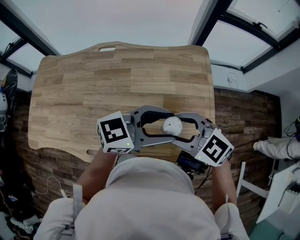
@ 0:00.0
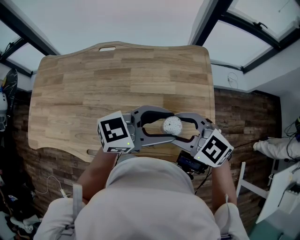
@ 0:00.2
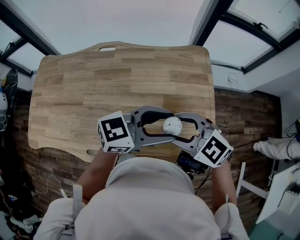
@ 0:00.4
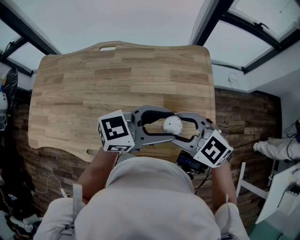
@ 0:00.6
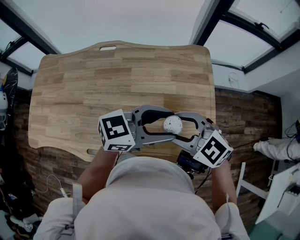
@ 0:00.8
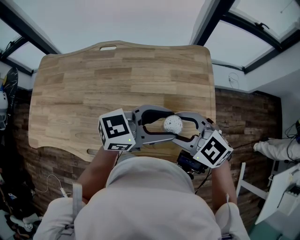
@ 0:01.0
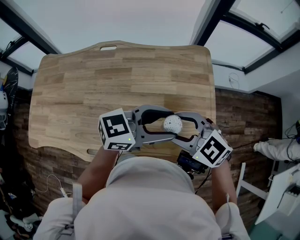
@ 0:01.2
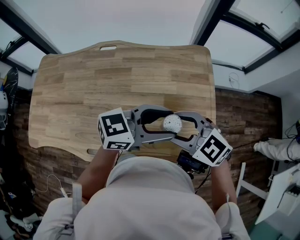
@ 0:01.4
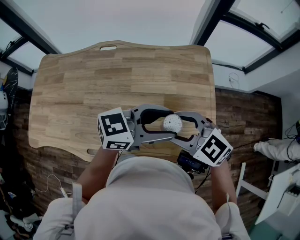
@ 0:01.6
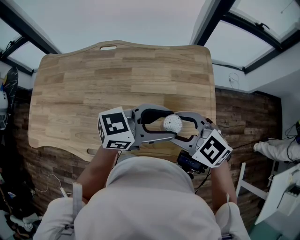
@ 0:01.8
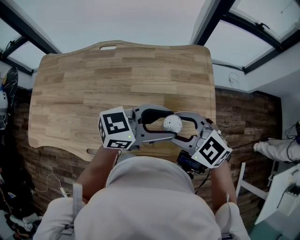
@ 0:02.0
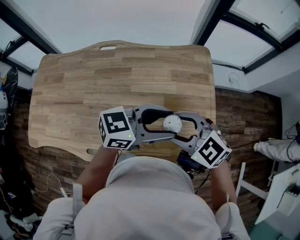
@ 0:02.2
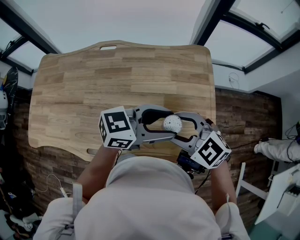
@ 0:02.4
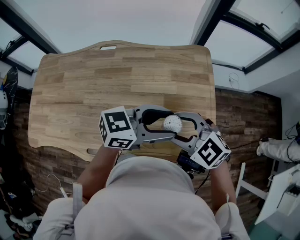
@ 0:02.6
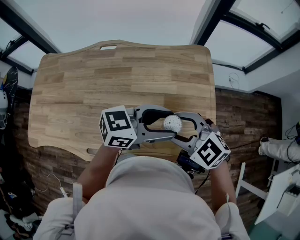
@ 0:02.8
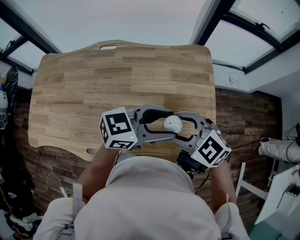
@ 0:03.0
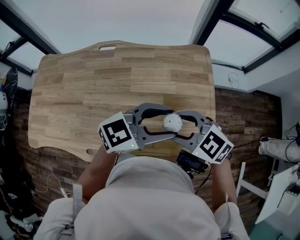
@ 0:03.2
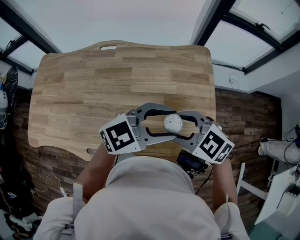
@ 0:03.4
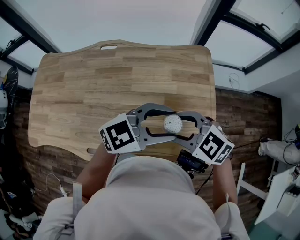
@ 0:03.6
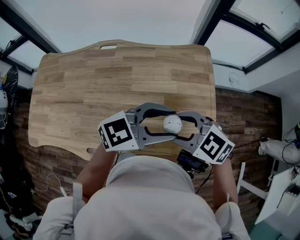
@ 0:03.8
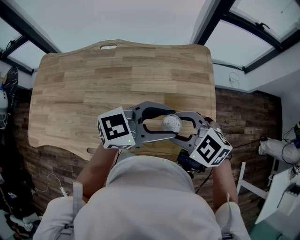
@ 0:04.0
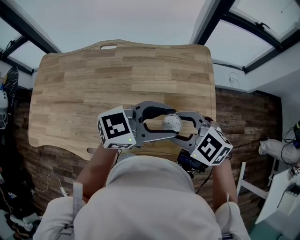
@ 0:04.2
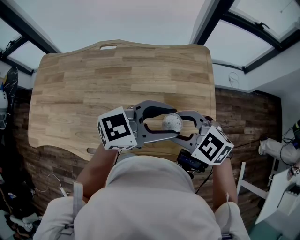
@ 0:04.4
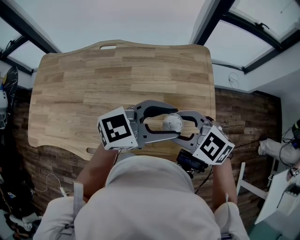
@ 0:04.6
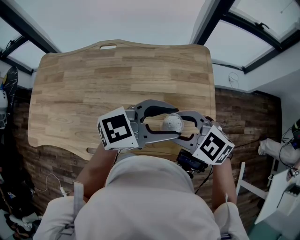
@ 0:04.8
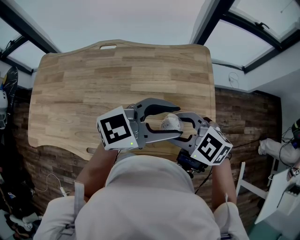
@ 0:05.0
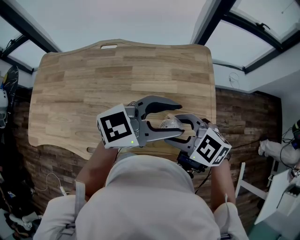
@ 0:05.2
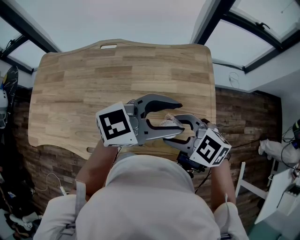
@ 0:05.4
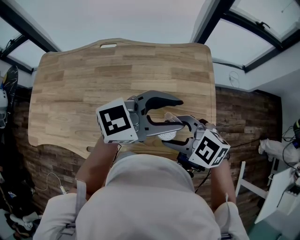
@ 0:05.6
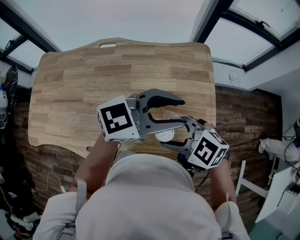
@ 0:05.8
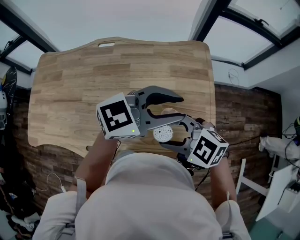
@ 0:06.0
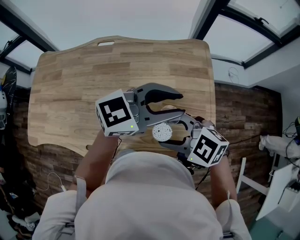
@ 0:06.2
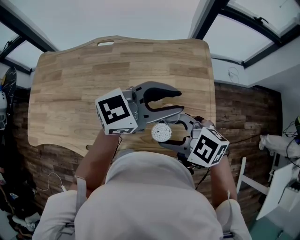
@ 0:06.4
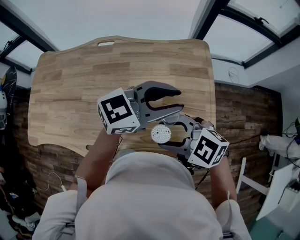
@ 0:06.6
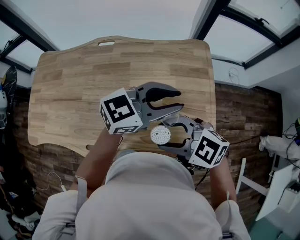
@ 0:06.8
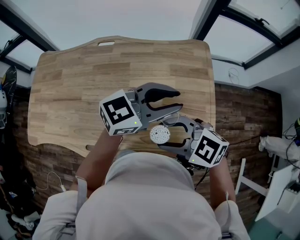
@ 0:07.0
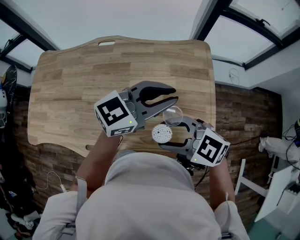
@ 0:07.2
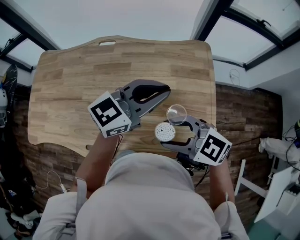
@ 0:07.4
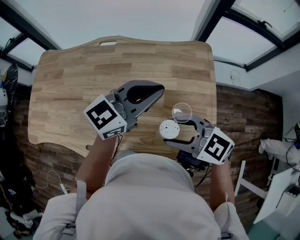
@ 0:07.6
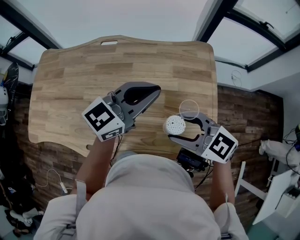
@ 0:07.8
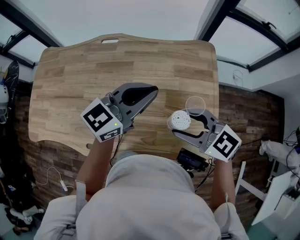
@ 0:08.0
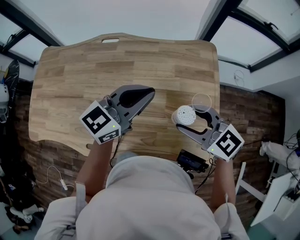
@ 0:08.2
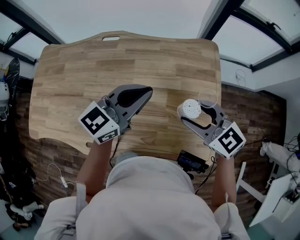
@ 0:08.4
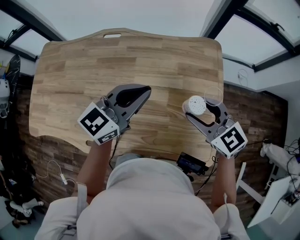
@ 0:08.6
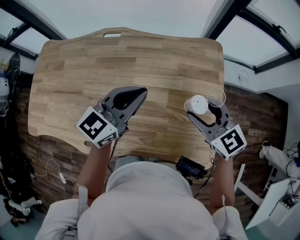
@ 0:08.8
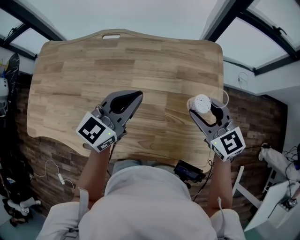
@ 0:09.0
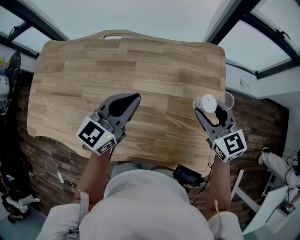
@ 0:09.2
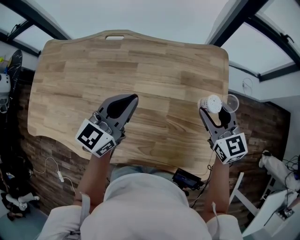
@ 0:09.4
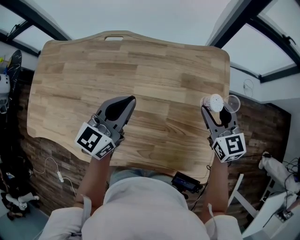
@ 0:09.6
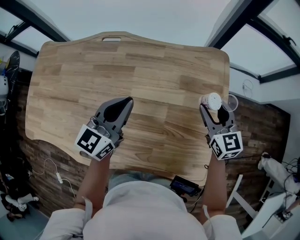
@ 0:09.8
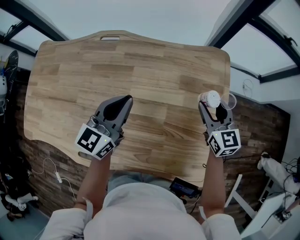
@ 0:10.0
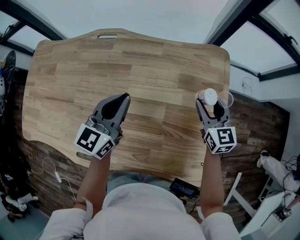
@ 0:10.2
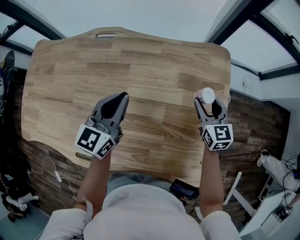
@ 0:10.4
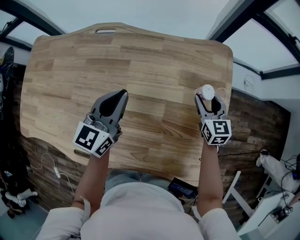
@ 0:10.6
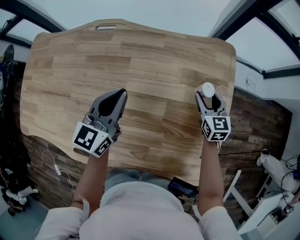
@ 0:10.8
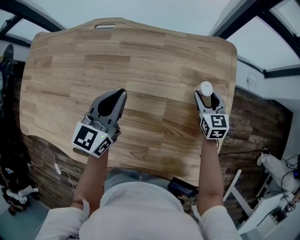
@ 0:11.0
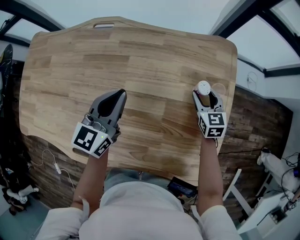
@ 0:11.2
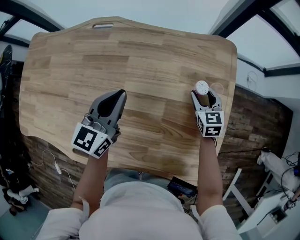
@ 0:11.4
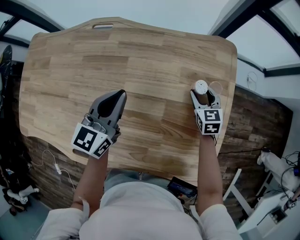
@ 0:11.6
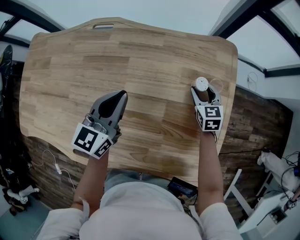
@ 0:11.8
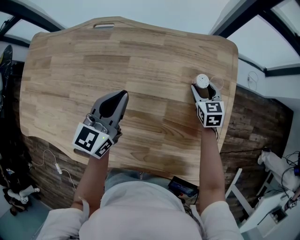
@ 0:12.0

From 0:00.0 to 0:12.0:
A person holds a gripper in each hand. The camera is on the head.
From 0:00.0 to 0:03.0: The grippers move only a little.
From 0:04.4 to 0:06.0: The left gripper closes its fingers.
From 0:06.0 to 0:07.6: The left gripper moves approximately 10 cm, changes its angle by about 20 degrees, and closes.
From 0:07.6 to 0:09.0: The left gripper heads downward, covering approximately 5 cm; the right gripper changes place by roughly 15 cm, and changes its angle by roughly 30 degrees.
From 0:09.0 to 0:10.4: The left gripper goes some 10 cm downward and forward. Meanwhile the right gripper shifts approximately 20 cm downward, forward and to the right, and rotates about 20 degrees.
From 0:10.4 to 0:12.0: The right gripper goes some 10 cm downward and forward.

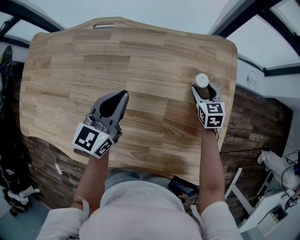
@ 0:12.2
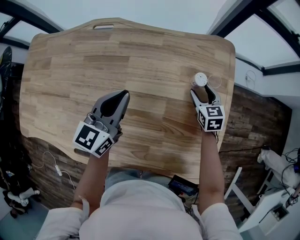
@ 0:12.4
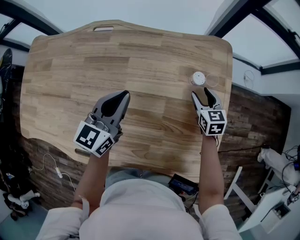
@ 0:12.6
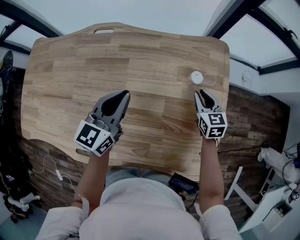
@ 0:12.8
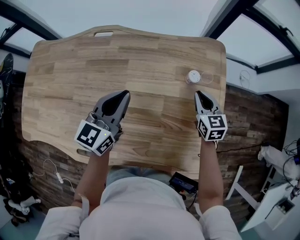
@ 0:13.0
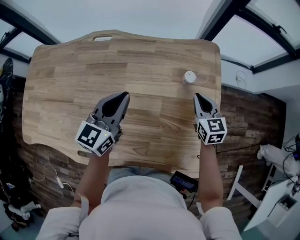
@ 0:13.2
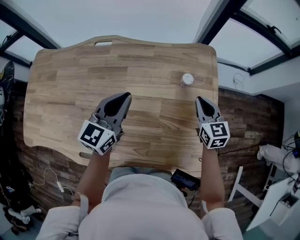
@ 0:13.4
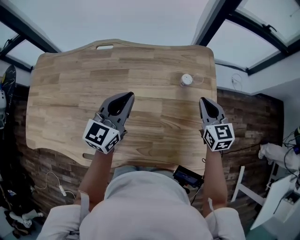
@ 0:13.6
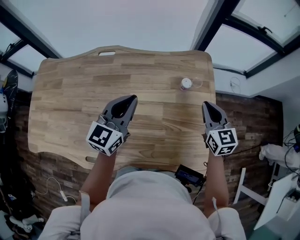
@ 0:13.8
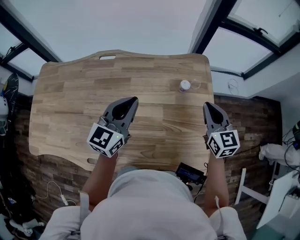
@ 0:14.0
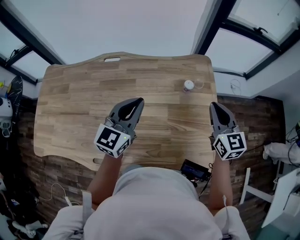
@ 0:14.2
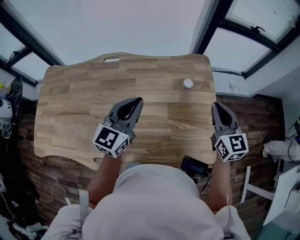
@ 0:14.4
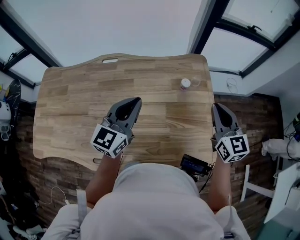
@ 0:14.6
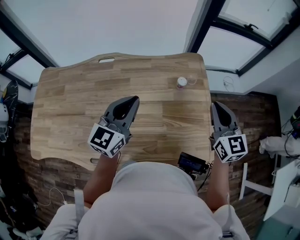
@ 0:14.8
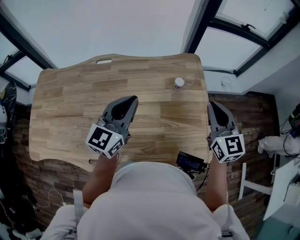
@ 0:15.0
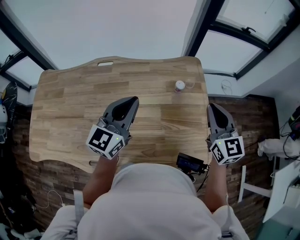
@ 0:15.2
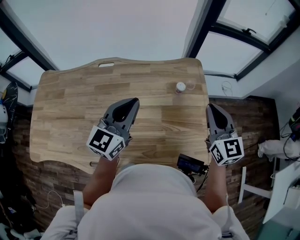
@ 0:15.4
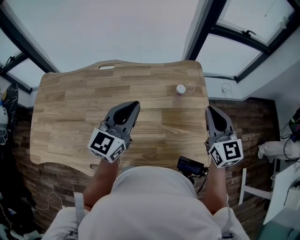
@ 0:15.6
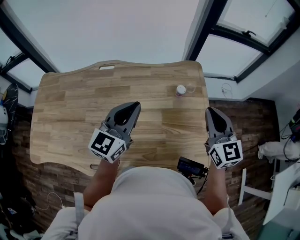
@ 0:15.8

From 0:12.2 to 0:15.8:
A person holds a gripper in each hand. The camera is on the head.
From 0:12.2 to 0:14.0: The left gripper goes some 15 cm upward and backward. Meanwhile the right gripper goes about 30 cm upward and backward, rotates some 20 degrees, and closes up.
From 0:14.0 to 0:15.8: The right gripper is displaced upward and backward by roughly 10 cm, while the left gripper ends up approximately 5 cm from where it was.

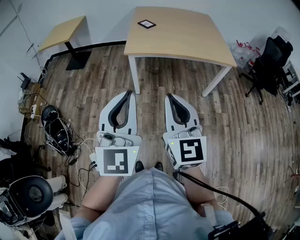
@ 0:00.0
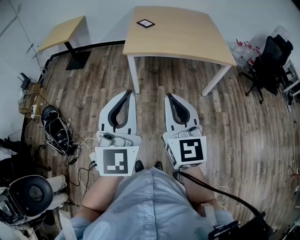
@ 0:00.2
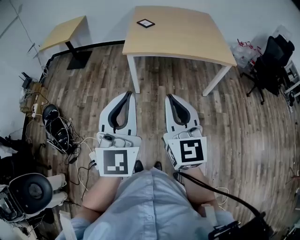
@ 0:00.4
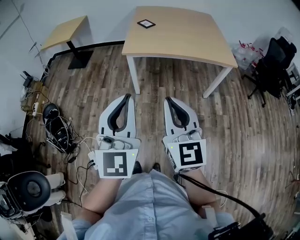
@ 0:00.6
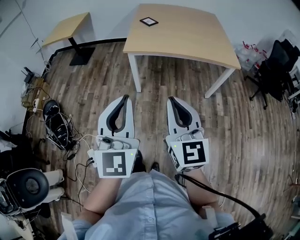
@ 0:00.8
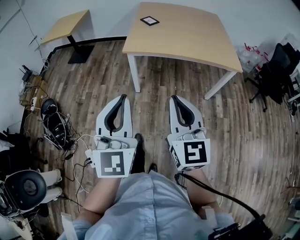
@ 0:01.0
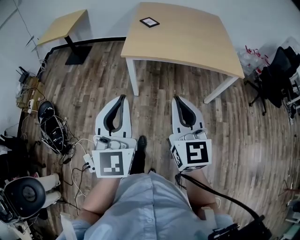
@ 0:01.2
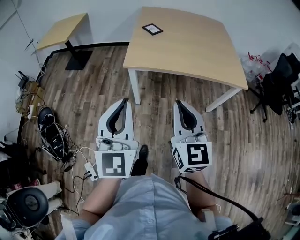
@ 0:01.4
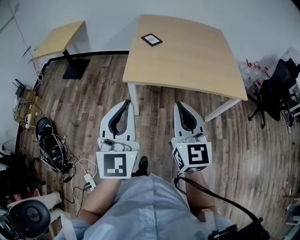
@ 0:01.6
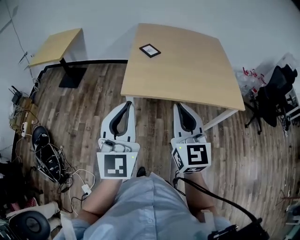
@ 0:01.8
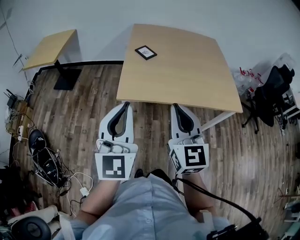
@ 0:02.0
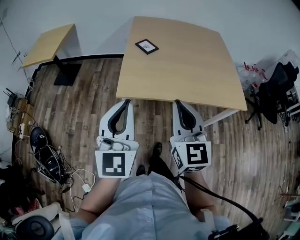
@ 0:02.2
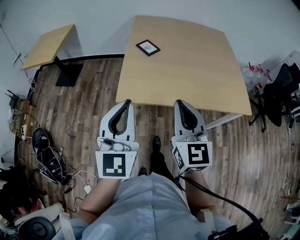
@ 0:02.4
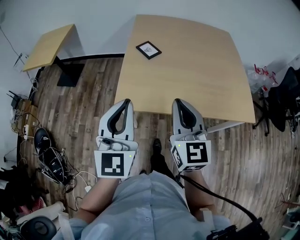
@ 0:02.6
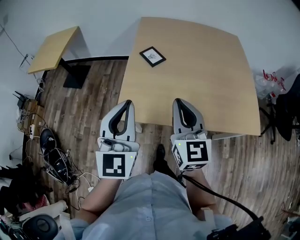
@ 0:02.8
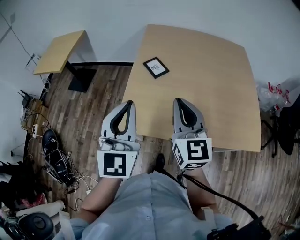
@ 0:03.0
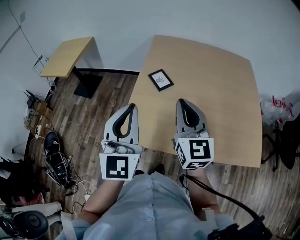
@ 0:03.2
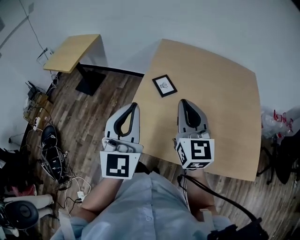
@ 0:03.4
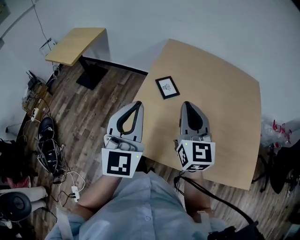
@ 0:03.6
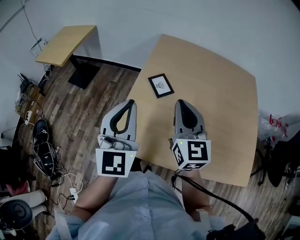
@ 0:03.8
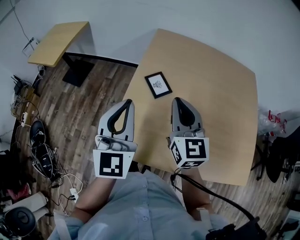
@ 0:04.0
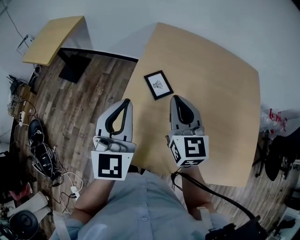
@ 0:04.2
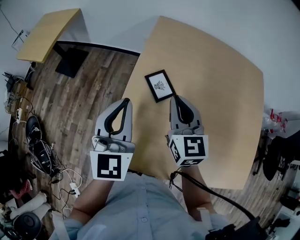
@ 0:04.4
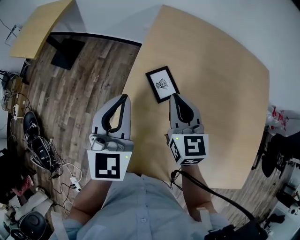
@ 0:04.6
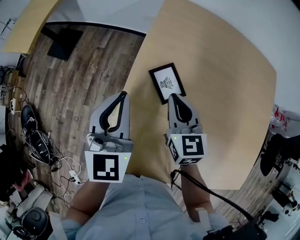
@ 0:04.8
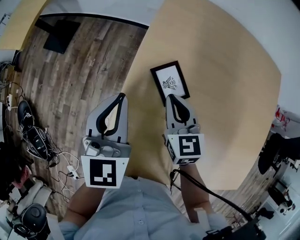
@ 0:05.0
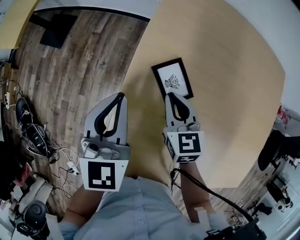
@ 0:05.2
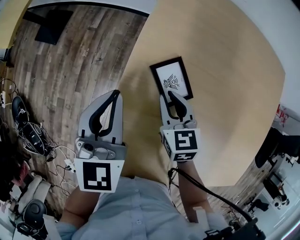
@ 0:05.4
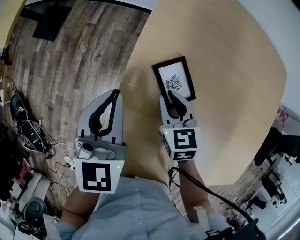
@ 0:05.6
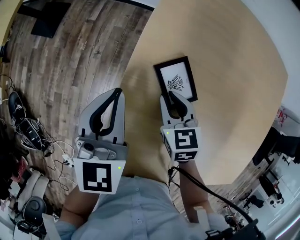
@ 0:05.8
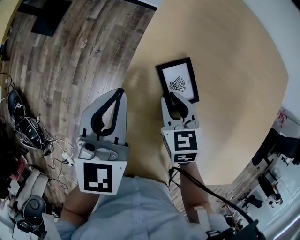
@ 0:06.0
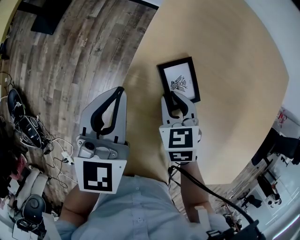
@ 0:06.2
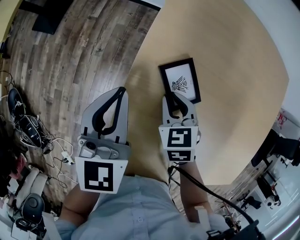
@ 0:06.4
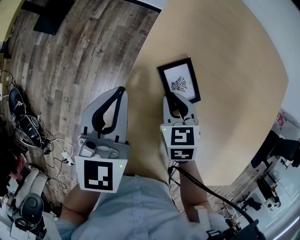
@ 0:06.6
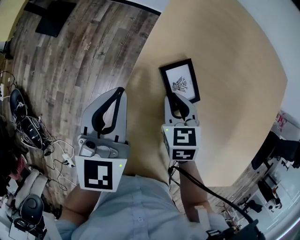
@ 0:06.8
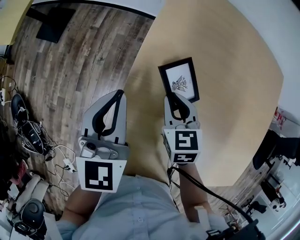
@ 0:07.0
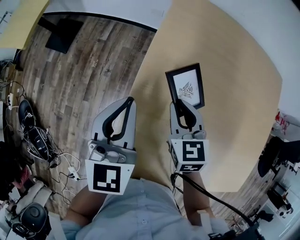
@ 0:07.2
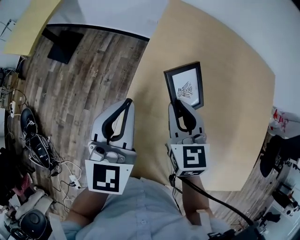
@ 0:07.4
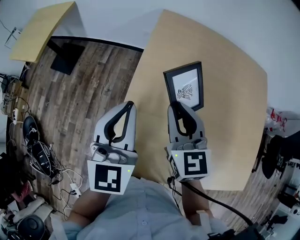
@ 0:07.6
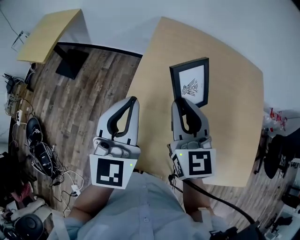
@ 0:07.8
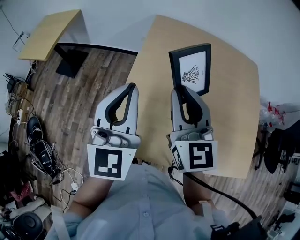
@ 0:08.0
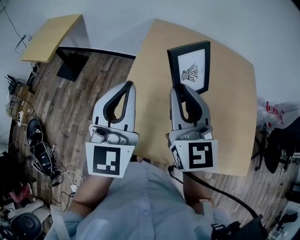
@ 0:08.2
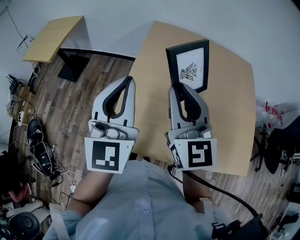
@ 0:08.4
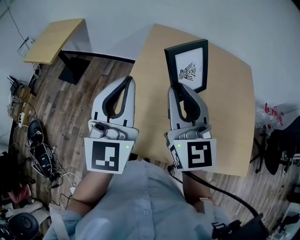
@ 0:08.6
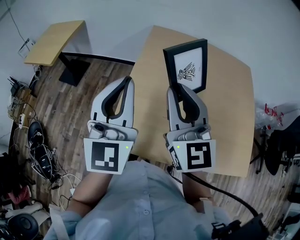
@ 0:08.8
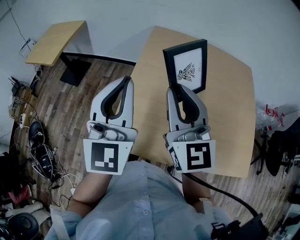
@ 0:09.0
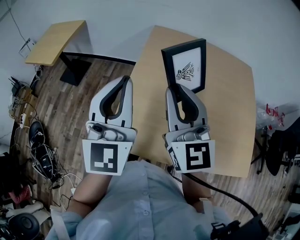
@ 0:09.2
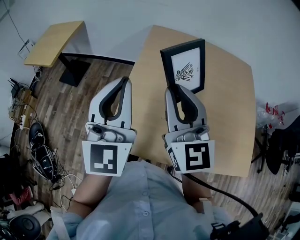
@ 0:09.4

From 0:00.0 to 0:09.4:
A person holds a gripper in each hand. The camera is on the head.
From 0:00.0 to 0:01.6: Both grippers move forward, some 20 cm.
From 0:01.6 to 0:03.2: The grippers both shift forward by approximately 30 cm.
From 0:03.2 to 0:04.8: Both grippers move forward and downward, some 25 cm. The right gripper changes its angle by approximately 30 degrees. Meanwhile the left gripper rotates roughly 20 degrees.
From 0:04.8 to 0:06.2: The left gripper heads downward, covering approximately 10 cm. The right gripper goes roughly 15 cm downward, and tips its fingers downward by some 30 degrees.
From 0:06.2 to 0:07.8: The right gripper travels upward by about 25 cm, and points its fingers about 50 degrees further upward, while the left gripper goes some 20 cm upward and backward, and rotates about 20 degrees.
From 0:07.8 to 0:09.4: Both grippers travel together upward, some 5 cm.
